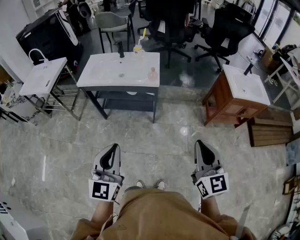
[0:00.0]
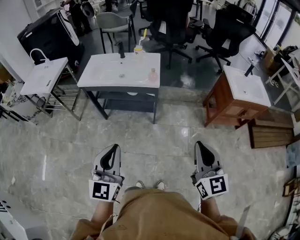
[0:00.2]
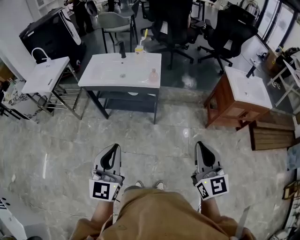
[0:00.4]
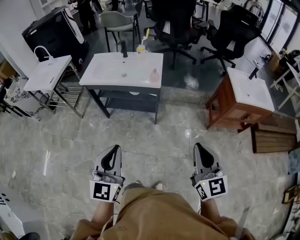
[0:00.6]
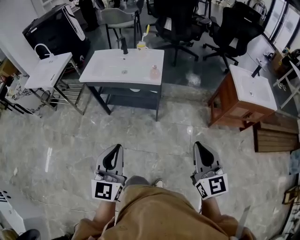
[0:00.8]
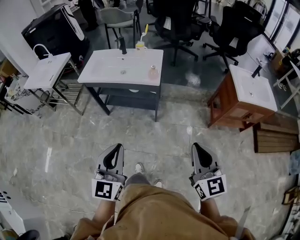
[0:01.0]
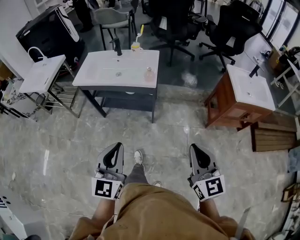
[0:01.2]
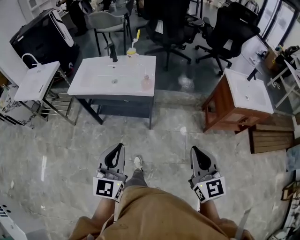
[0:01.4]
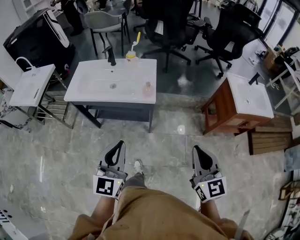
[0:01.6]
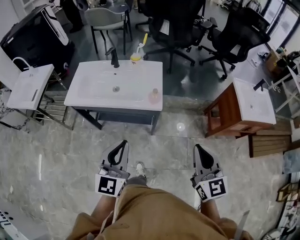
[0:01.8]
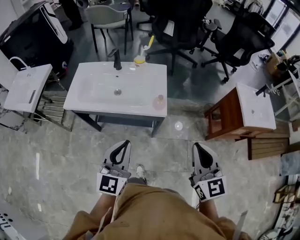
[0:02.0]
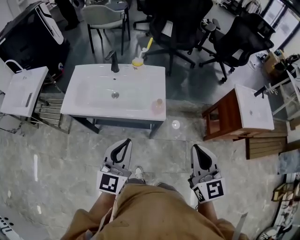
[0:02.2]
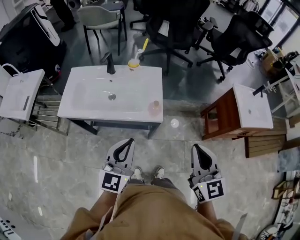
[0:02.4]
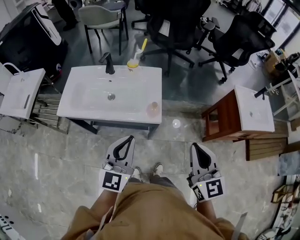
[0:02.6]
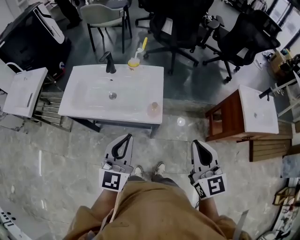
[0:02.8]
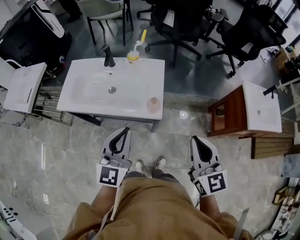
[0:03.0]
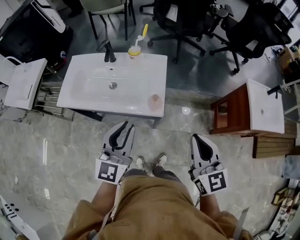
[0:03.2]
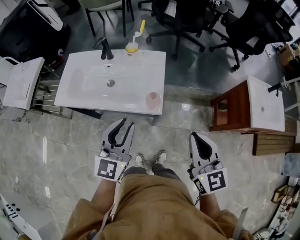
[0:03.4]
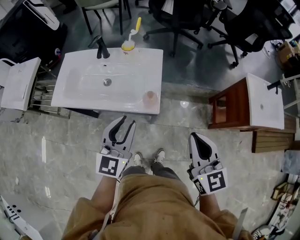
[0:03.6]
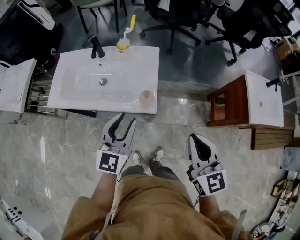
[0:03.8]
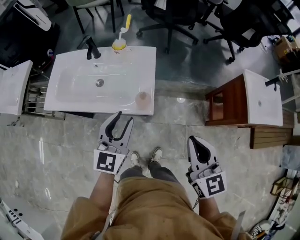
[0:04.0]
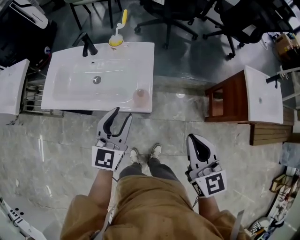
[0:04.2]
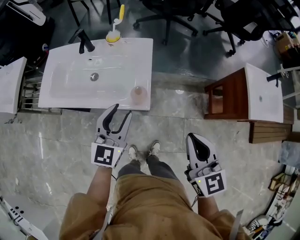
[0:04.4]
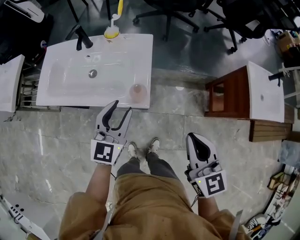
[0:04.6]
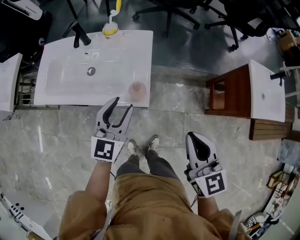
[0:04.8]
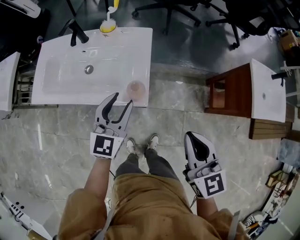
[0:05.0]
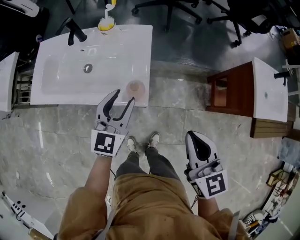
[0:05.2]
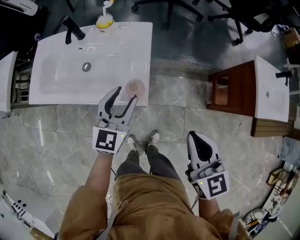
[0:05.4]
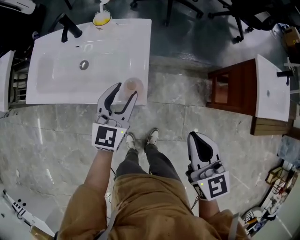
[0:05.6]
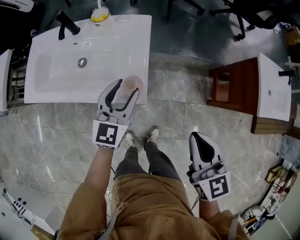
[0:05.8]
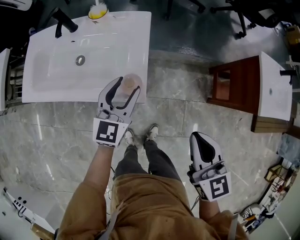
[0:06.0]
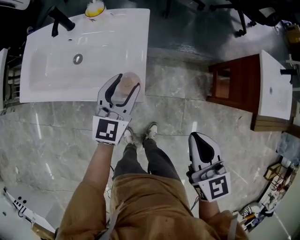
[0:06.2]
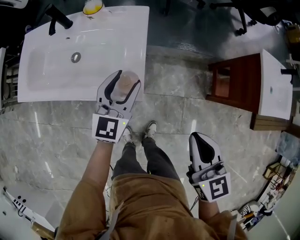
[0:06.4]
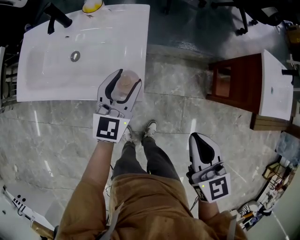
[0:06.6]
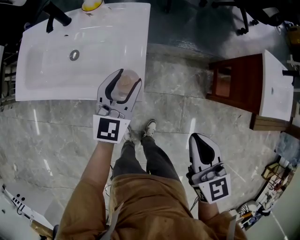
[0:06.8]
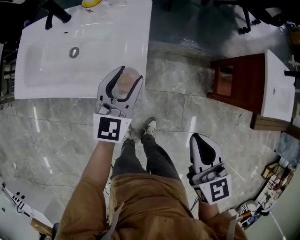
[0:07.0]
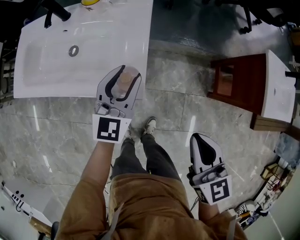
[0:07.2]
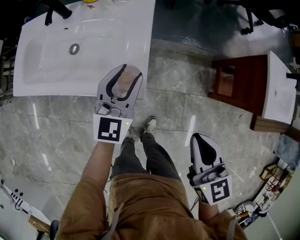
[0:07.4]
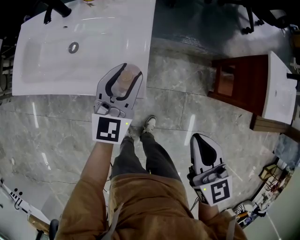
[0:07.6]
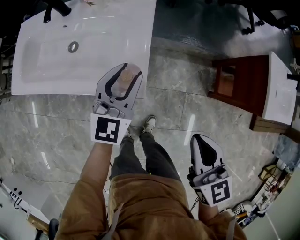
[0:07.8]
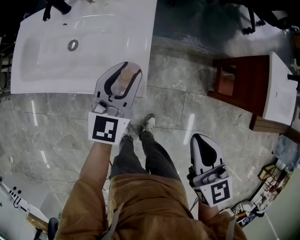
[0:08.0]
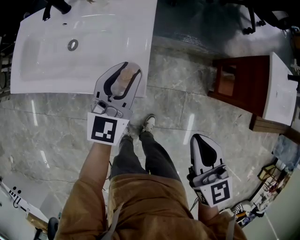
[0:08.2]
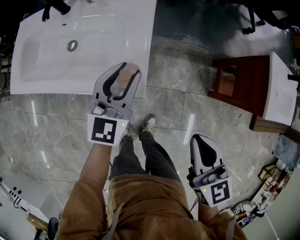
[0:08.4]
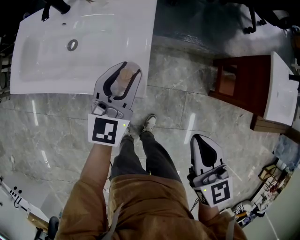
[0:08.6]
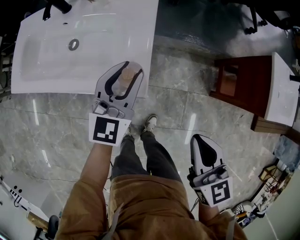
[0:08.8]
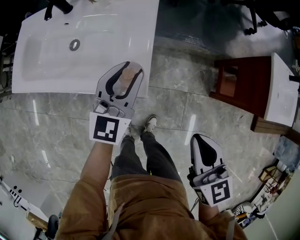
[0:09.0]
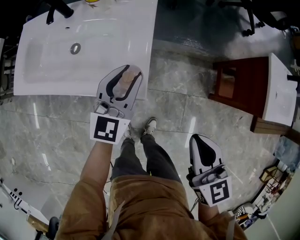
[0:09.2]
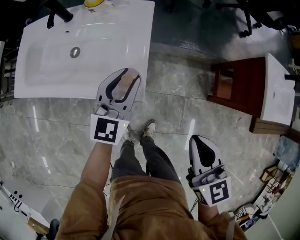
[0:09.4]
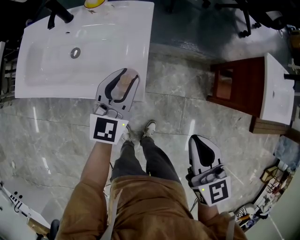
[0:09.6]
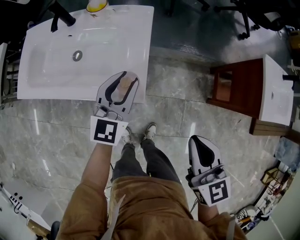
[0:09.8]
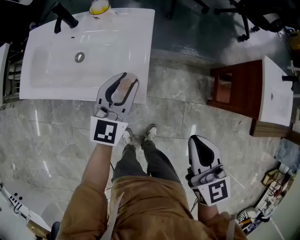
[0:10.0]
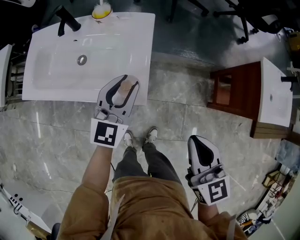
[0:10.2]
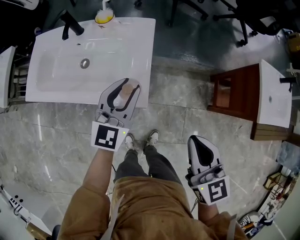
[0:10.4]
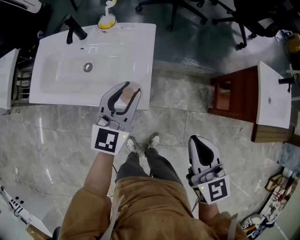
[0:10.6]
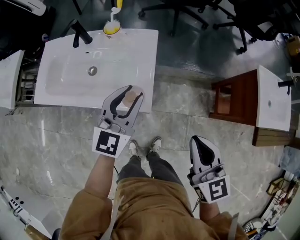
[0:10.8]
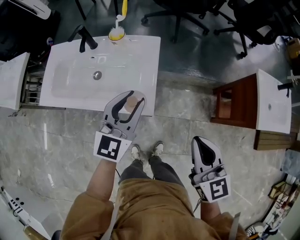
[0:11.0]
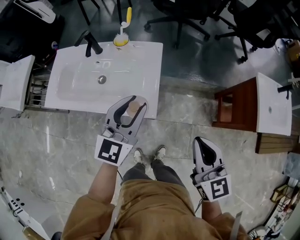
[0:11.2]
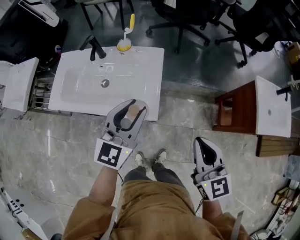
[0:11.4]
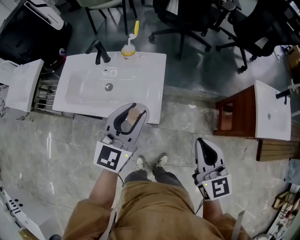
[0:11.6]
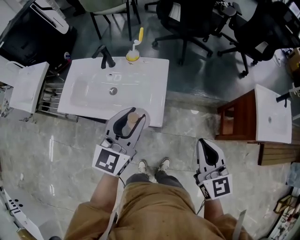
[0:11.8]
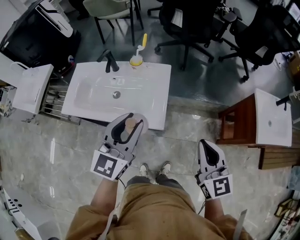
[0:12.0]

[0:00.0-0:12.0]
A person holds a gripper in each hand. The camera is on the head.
0:00.0 to 0:01.6: Both grippers move forward, roughly 20 cm.
0:01.6 to 0:03.0: Both grippers travel together forward, roughly 25 cm.
0:03.0 to 0:04.4: The left gripper heads forward, downward and to the right, covering some 15 cm, and opens. The right gripper moves downward, about 5 cm.
0:04.4 to 0:06.0: The left gripper goes about 15 cm downward and forward; the right gripper is displaced downward by approximately 5 cm.
0:06.0 to 0:07.6: There are only small adjustments of the grippers.
0:07.6 to 0:09.0: Both grippers stay about where they are.
0:09.0 to 0:10.4: Both grippers move upward, roughly 5 cm.
0:10.4 to 0:12.0: The right gripper heads upward, covering roughly 10 cm. Meanwhile the left gripper moves upward and backward, roughly 20 cm.

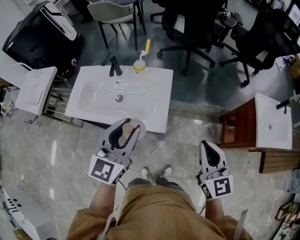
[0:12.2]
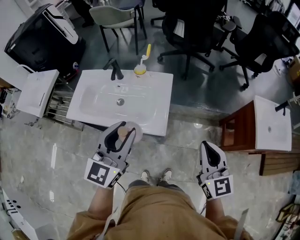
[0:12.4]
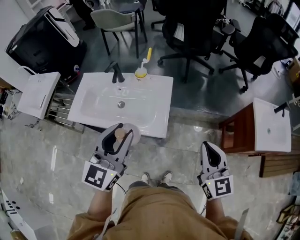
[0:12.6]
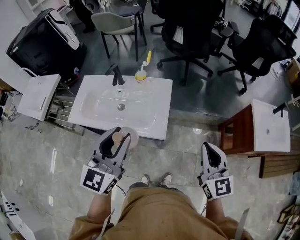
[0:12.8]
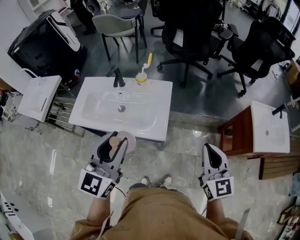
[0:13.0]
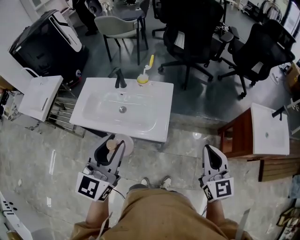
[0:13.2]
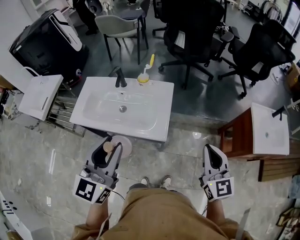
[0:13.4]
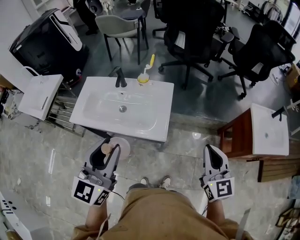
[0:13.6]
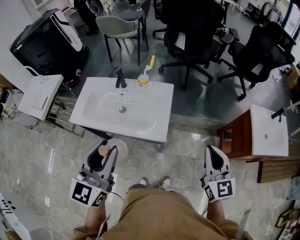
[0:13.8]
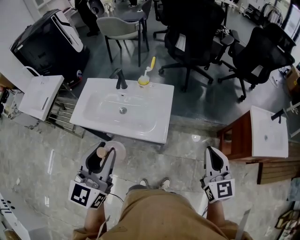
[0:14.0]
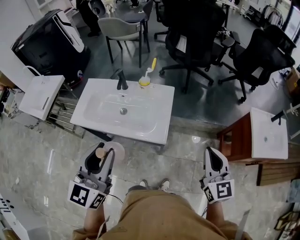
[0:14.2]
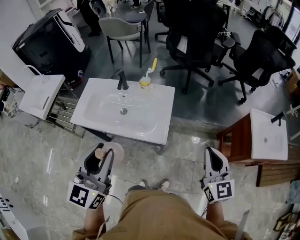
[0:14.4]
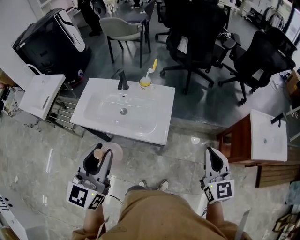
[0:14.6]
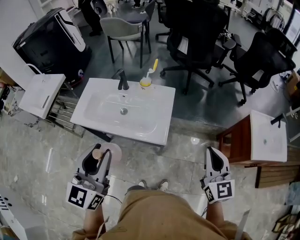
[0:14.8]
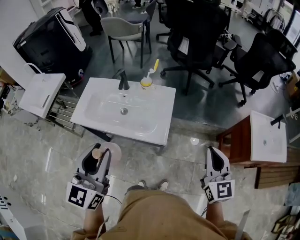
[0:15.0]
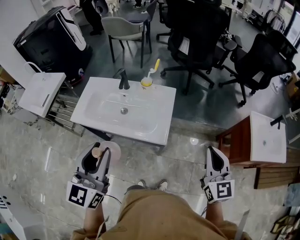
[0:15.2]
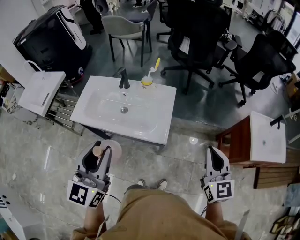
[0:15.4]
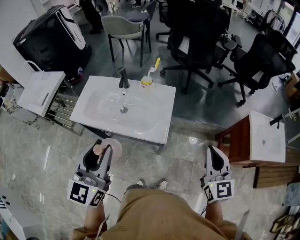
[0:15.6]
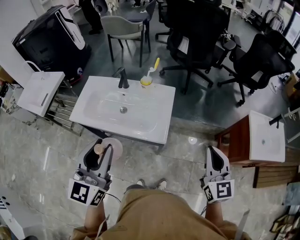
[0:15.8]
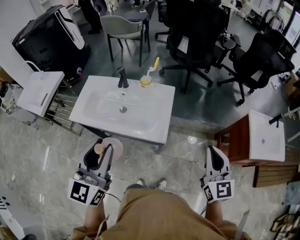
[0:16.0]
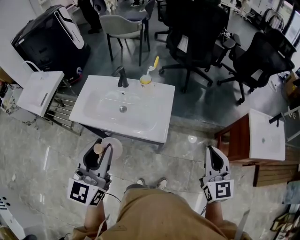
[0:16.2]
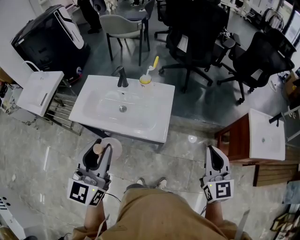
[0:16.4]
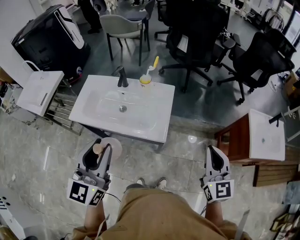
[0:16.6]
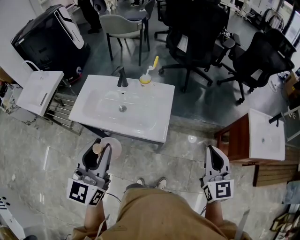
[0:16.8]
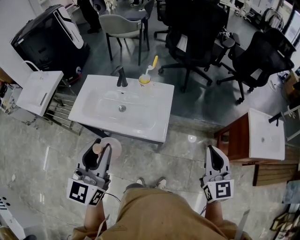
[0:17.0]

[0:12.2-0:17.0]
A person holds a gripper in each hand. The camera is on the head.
0:12.2 to 0:13.8: The left gripper goes about 15 cm backward, to the left and upward.
0:13.8 to 0:15.4: The grippers stay close to where they were, moving slightly.
0:15.4 to 0:17.0: Both grippers stay about where they are.

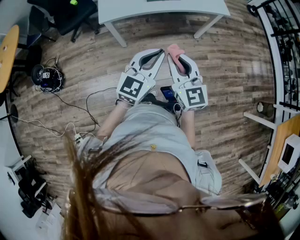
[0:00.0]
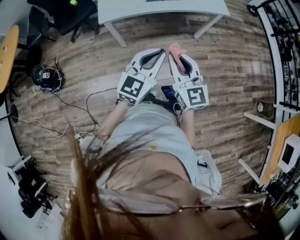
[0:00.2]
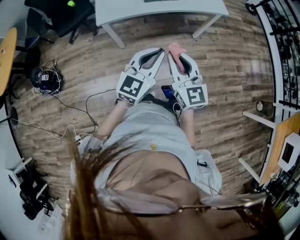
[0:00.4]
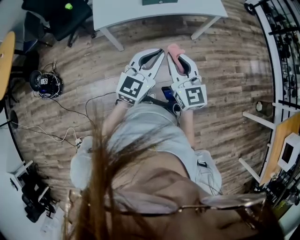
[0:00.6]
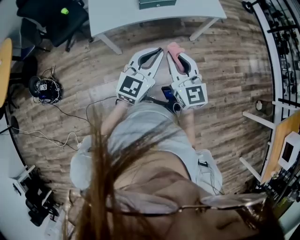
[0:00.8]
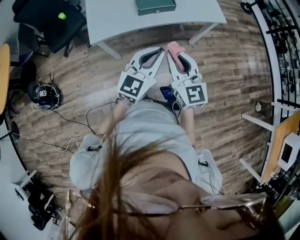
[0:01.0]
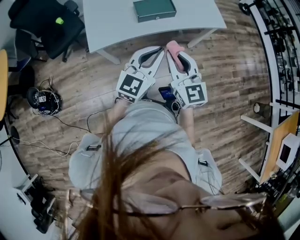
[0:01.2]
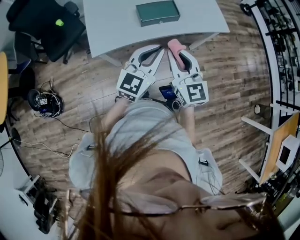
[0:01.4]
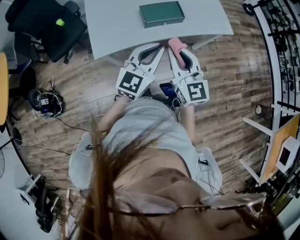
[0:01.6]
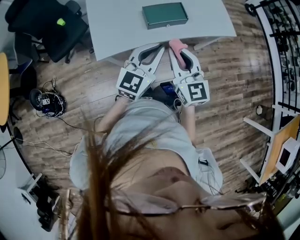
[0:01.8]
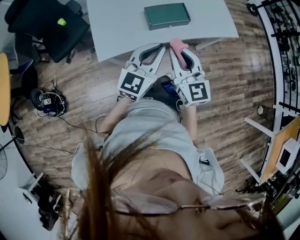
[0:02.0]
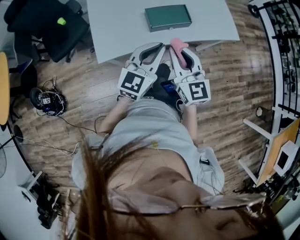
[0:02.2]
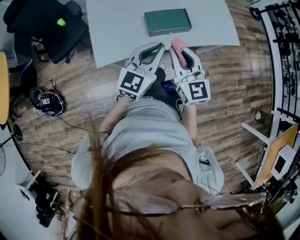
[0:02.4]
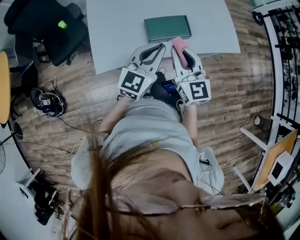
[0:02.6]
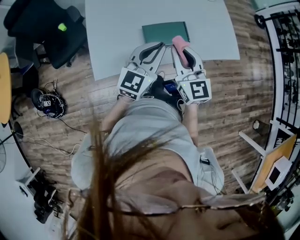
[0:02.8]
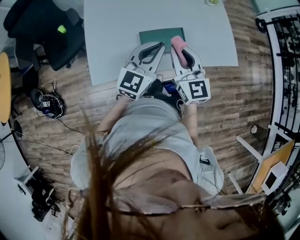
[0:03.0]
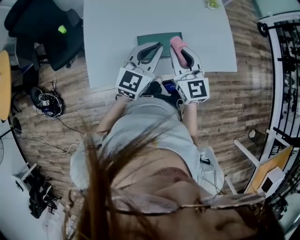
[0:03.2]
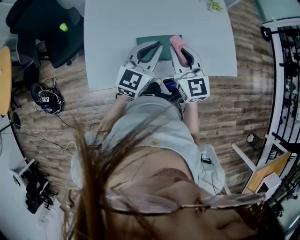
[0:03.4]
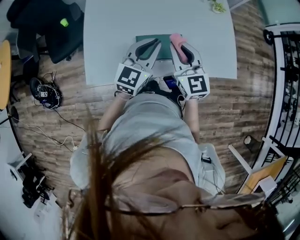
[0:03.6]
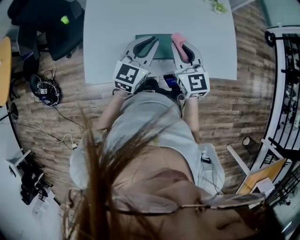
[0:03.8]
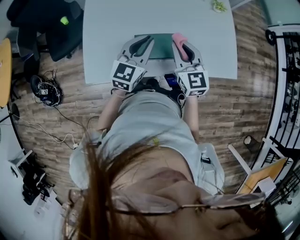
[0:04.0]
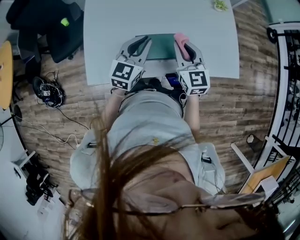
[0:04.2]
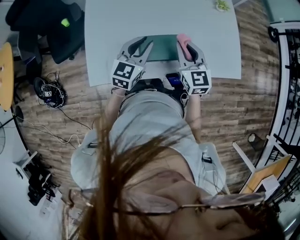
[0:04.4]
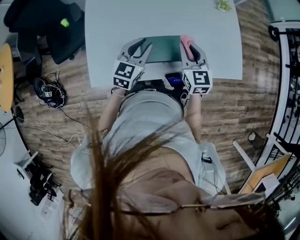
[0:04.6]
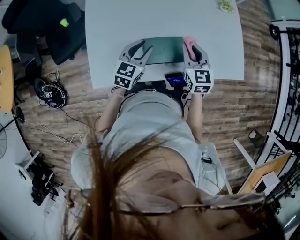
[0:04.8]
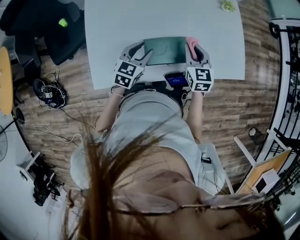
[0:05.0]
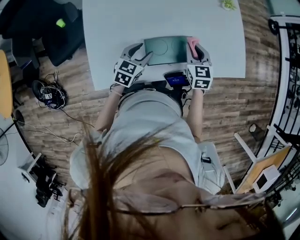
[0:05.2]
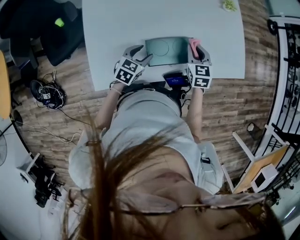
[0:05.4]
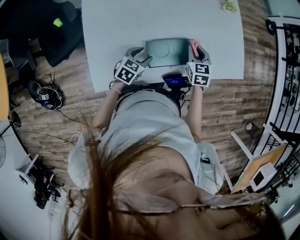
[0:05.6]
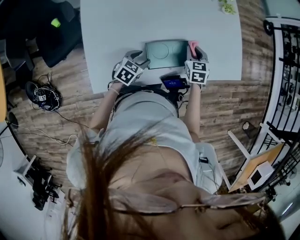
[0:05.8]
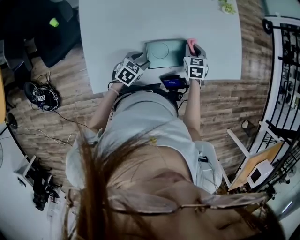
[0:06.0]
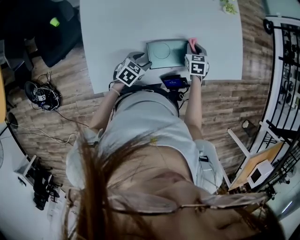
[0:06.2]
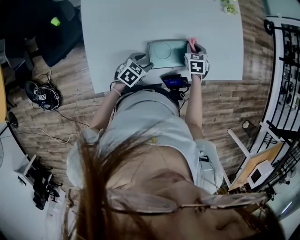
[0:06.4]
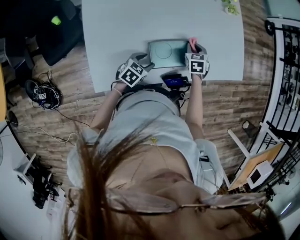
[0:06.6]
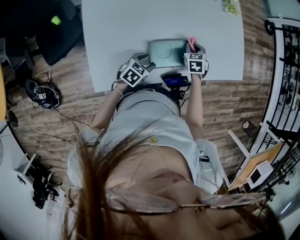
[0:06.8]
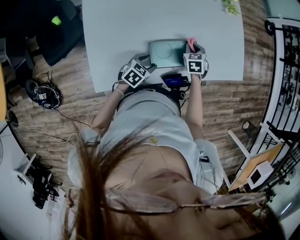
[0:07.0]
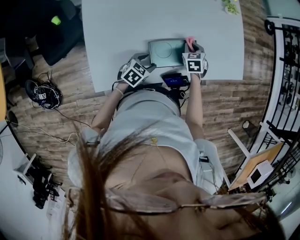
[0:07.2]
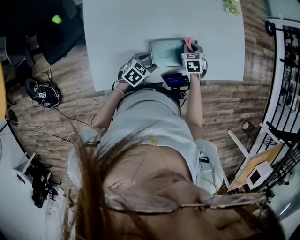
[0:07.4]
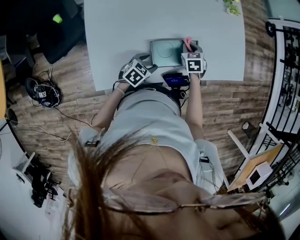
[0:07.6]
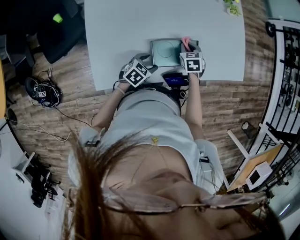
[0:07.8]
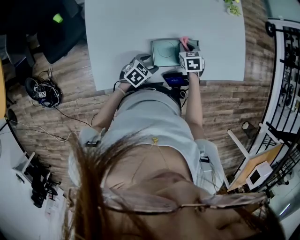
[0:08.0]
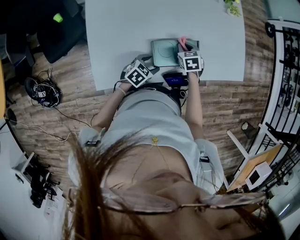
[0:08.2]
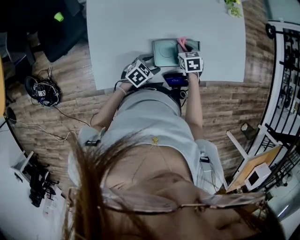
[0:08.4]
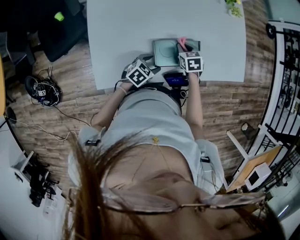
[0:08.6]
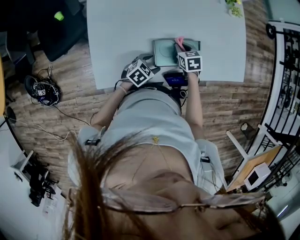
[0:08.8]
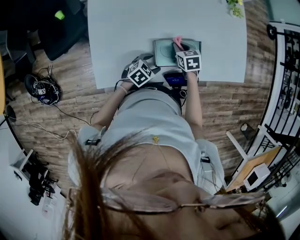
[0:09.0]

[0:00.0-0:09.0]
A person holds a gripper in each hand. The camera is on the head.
0:00.0 to 0:01.6: Both grippers move forward, about 25 cm.
0:01.6 to 0:03.0: The two grippers go some 20 cm forward.
0:03.0 to 0:04.4: Both grippers travel together forward and downward, roughly 10 cm.
0:04.4 to 0:06.0: The two grippers go some 20 cm downward. The right gripper angles its fingers downward, by approximately 30 degrees. The left gripper rotates roughly 40 degrees, and opens.
0:06.0 to 0:07.6: The grippers move only a little.
0:07.6 to 0:09.0: The right gripper moves to the left, some 5 cm.
